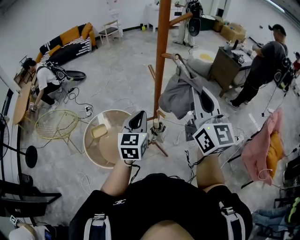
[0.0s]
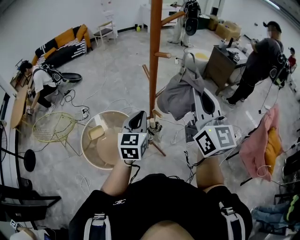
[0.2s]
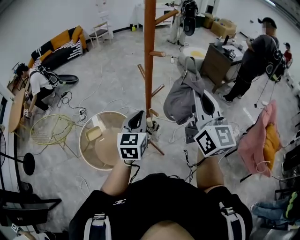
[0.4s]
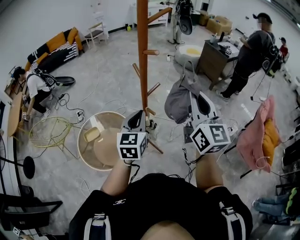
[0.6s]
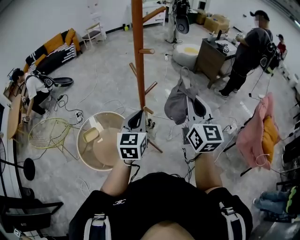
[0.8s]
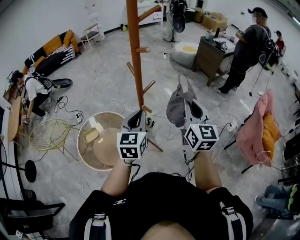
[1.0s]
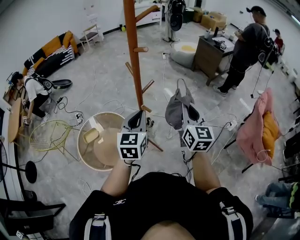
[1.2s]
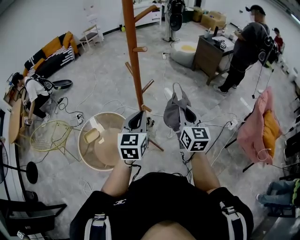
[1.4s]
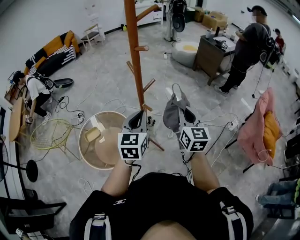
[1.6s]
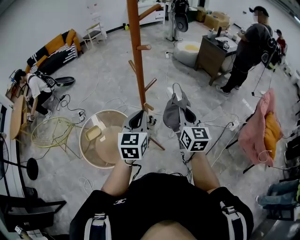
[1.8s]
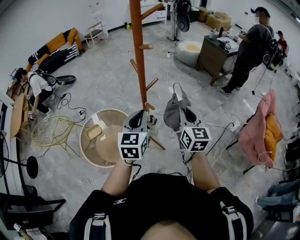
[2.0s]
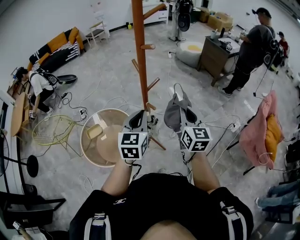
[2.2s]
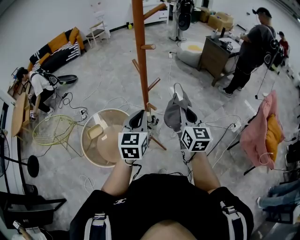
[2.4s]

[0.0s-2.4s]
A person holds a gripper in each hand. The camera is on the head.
0.0s to 1.2s: The right gripper travels downward and to the right by some 15 cm, and rotates about 20 degrees; the left gripper goes some 5 cm to the right.
1.2s to 2.4s: The grippers stay close to where they were, moving slightly.

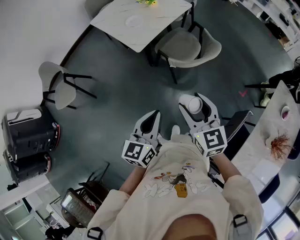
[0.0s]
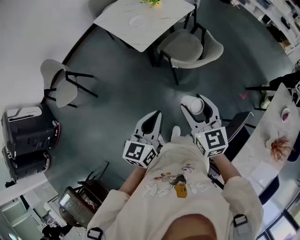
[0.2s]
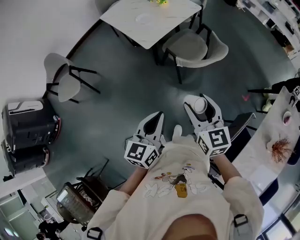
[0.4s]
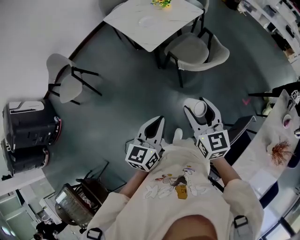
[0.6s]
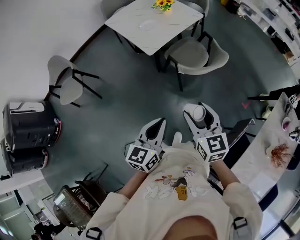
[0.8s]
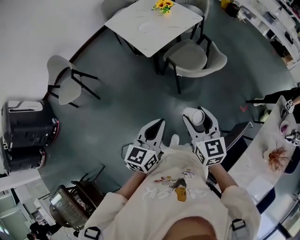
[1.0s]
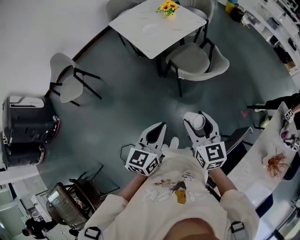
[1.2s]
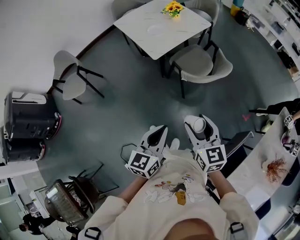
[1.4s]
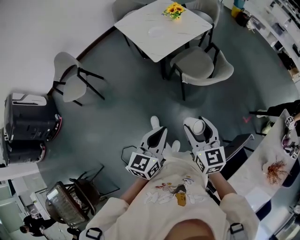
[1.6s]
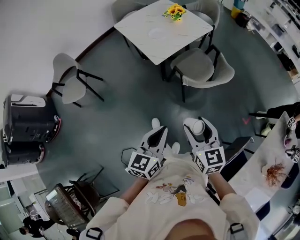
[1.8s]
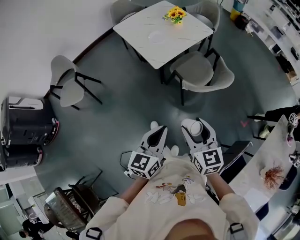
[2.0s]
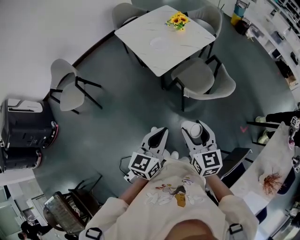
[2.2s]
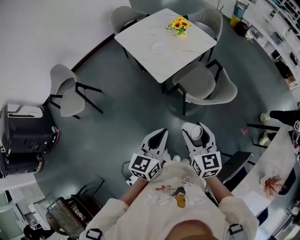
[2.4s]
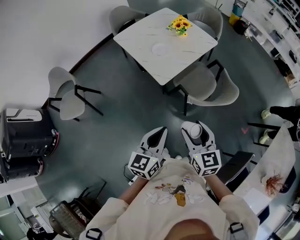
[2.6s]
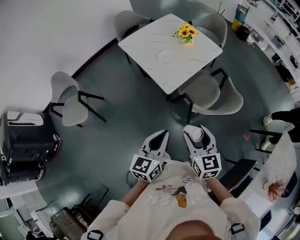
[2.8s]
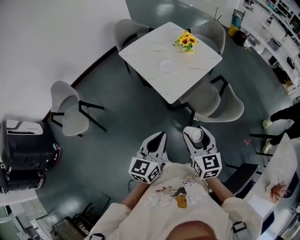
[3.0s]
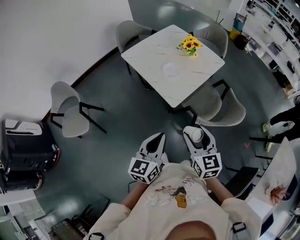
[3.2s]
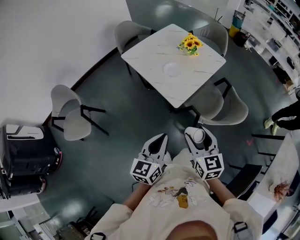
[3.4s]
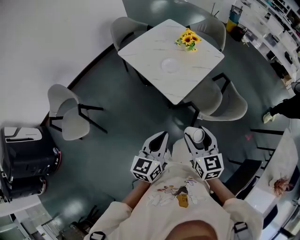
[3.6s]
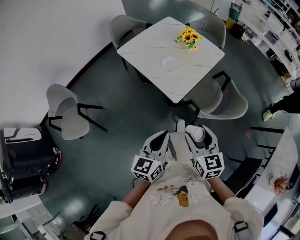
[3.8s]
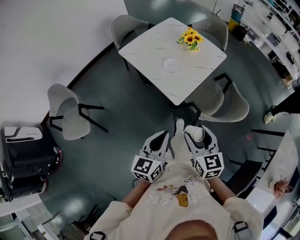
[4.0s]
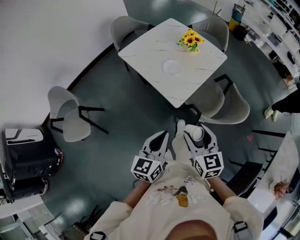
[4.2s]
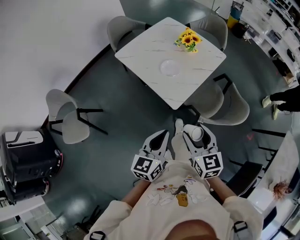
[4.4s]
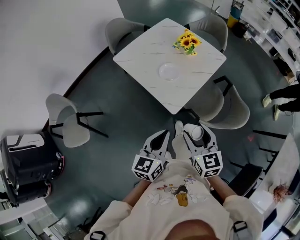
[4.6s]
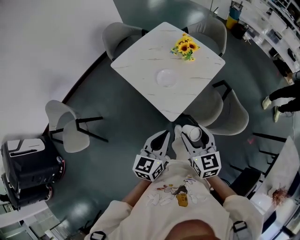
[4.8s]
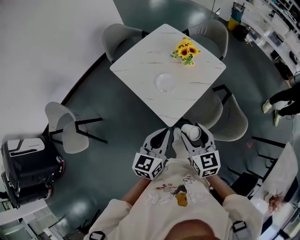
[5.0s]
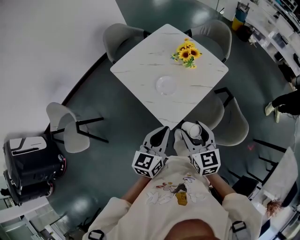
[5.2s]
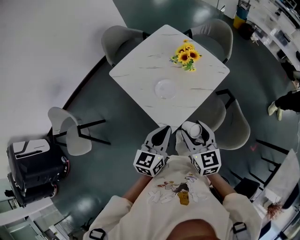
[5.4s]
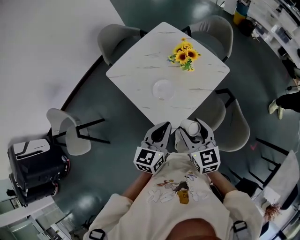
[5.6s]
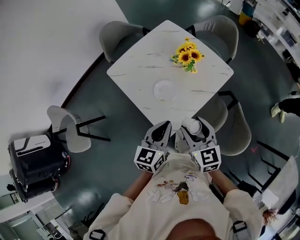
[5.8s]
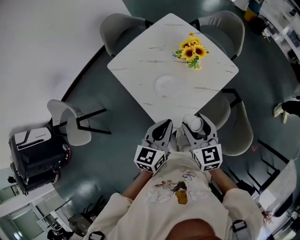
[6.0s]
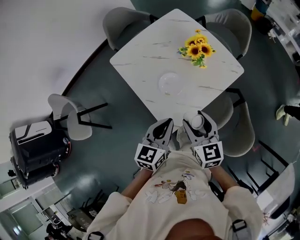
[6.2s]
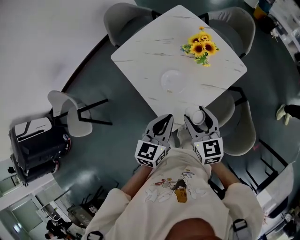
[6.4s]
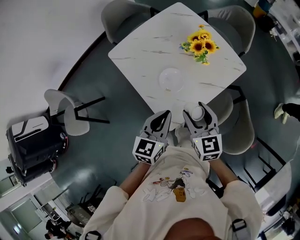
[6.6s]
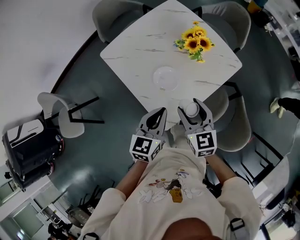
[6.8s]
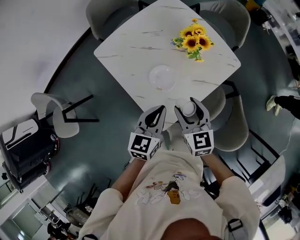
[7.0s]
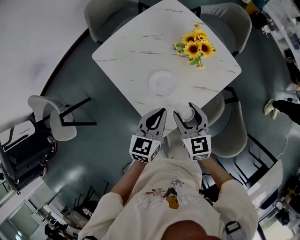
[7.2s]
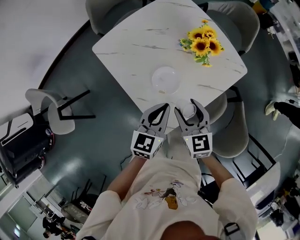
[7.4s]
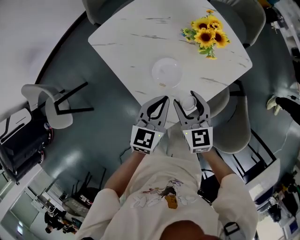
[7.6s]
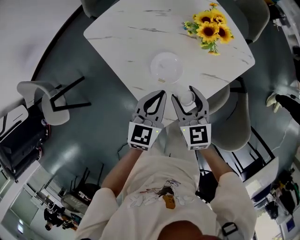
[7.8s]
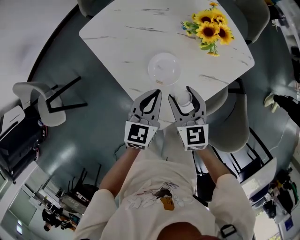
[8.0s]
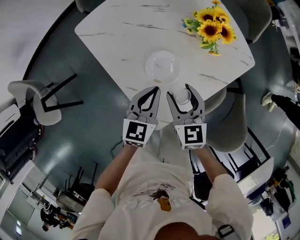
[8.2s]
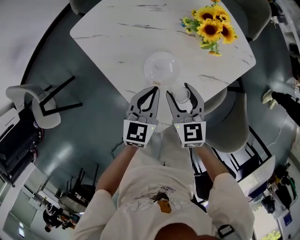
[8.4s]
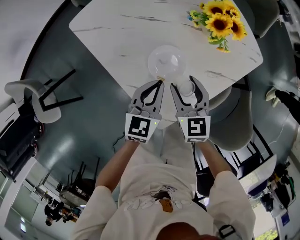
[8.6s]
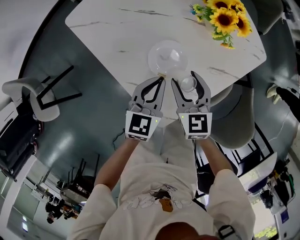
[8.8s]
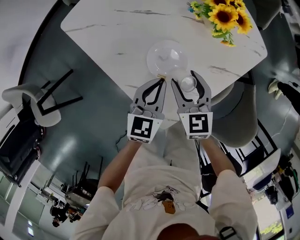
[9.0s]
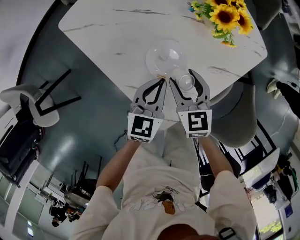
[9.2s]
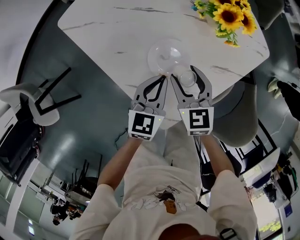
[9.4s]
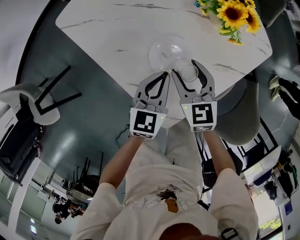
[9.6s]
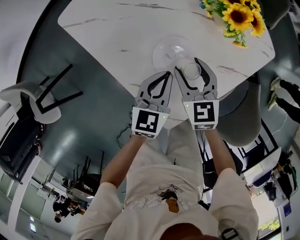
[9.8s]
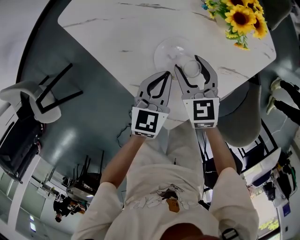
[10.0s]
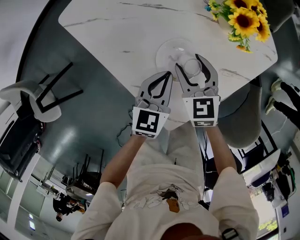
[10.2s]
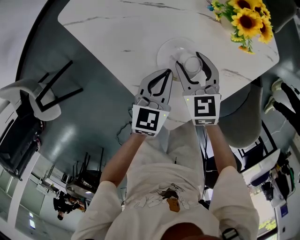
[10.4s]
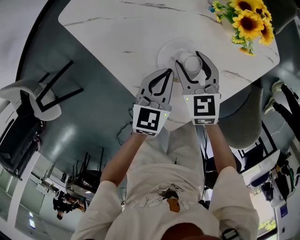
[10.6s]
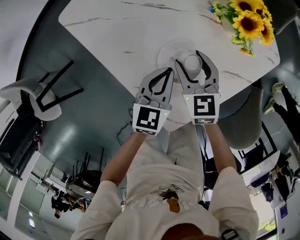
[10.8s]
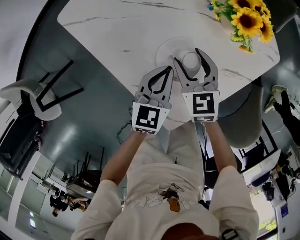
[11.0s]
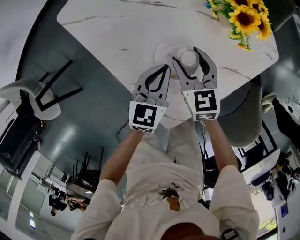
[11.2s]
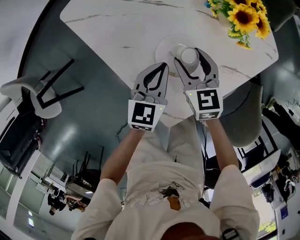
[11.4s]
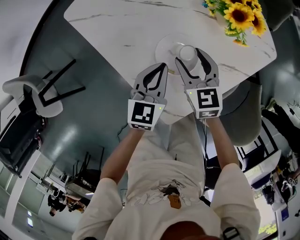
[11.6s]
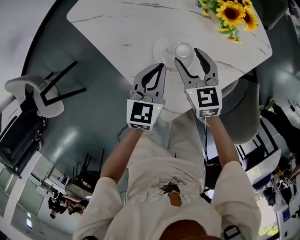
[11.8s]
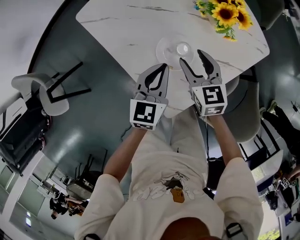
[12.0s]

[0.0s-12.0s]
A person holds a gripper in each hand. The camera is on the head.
0.0s to 1.6s: The right gripper shifts by some 5 cm.
1.6s to 3.0s: The grippers both shift forward and to the left by roughly 30 cm.
3.0s to 4.4s: Both grippers travel together forward, roughly 10 cm.
4.4s to 6.0s: Both grippers travel together forward, approximately 30 cm.
6.0s to 7.6s: The right gripper shifts approximately 20 cm downward, forward and to the left. Meanwhile the left gripper goes approximately 15 cm downward and forward.
7.6s to 9.0s: Both grippers travel together downward, some 10 cm.
9.0s to 10.4s: The right gripper goes roughly 5 cm forward. Meanwhile the left gripper ends up about 5 cm from where it was.
10.4s to 12.0s: The two grippers go roughly 5 cm upward.

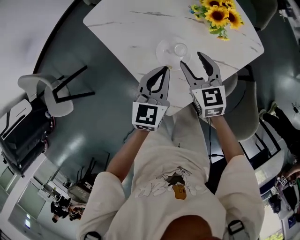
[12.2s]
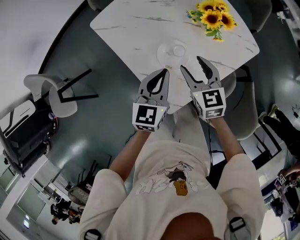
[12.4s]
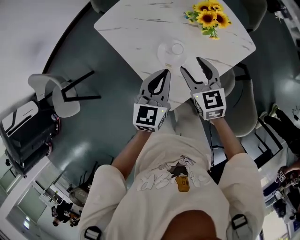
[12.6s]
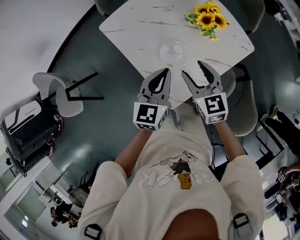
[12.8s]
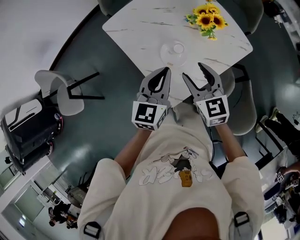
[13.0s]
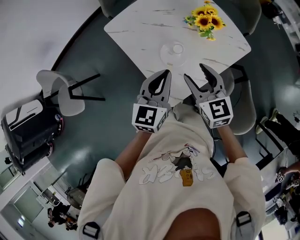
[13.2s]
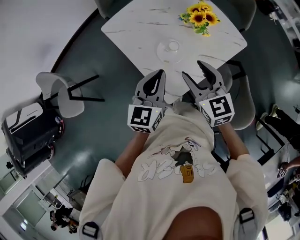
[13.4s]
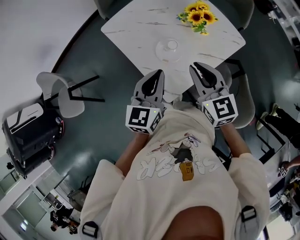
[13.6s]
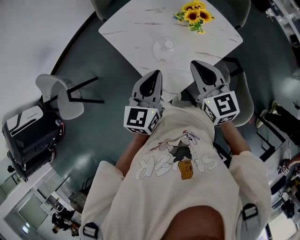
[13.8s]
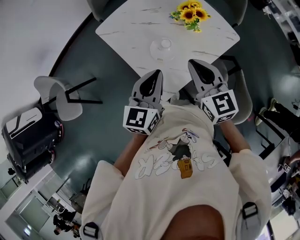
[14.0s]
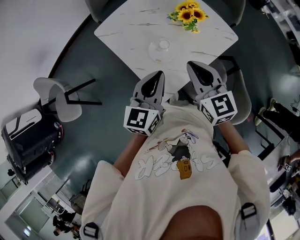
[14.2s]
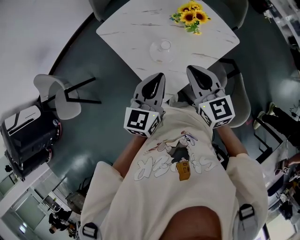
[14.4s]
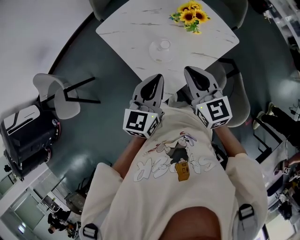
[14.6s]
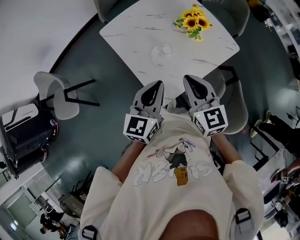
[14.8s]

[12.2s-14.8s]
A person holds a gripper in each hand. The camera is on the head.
12.2s to 13.4s: The two grippers go roughly 20 cm upward and backward.
13.4s to 14.8s: The left gripper travels backward by approximately 5 cm; the right gripper shifts by roughly 5 cm, and closes its fingers.

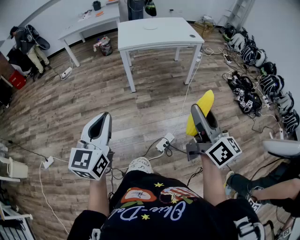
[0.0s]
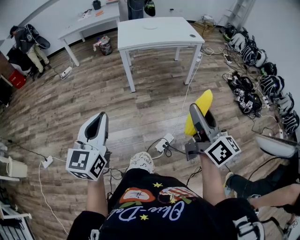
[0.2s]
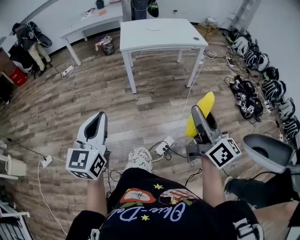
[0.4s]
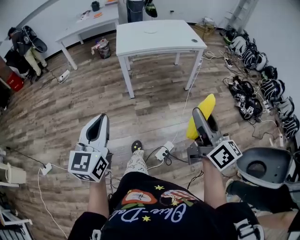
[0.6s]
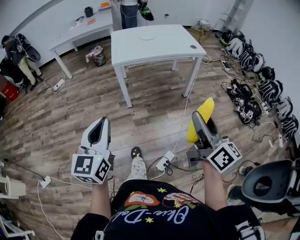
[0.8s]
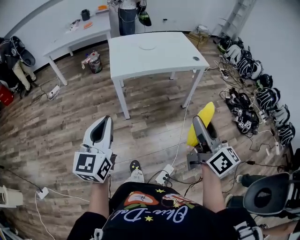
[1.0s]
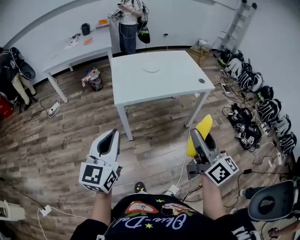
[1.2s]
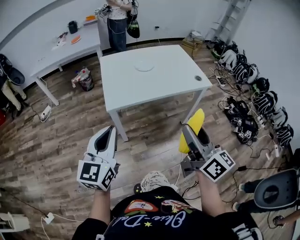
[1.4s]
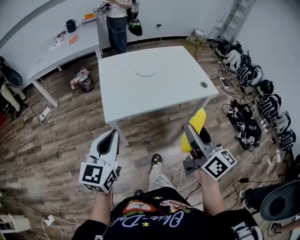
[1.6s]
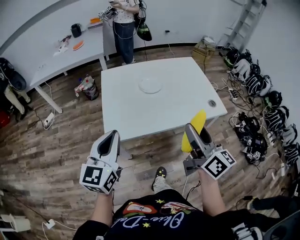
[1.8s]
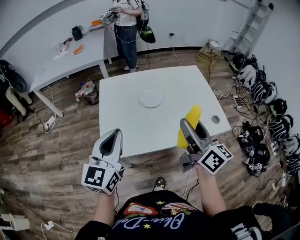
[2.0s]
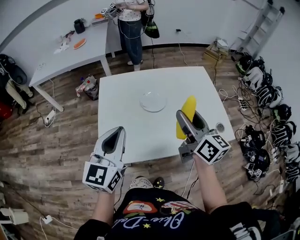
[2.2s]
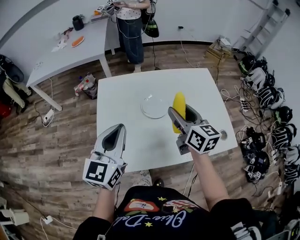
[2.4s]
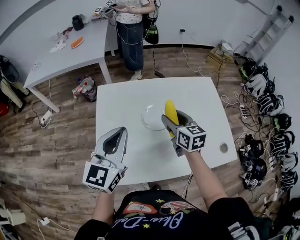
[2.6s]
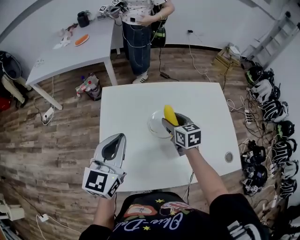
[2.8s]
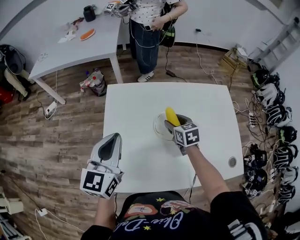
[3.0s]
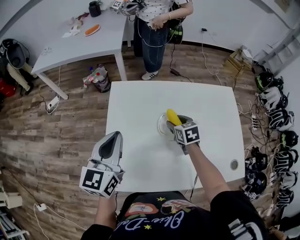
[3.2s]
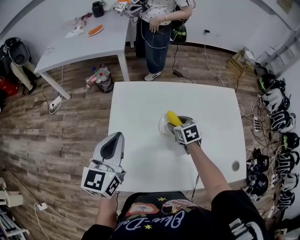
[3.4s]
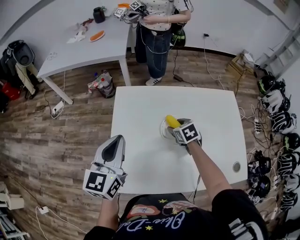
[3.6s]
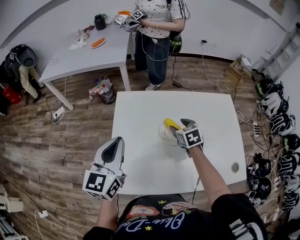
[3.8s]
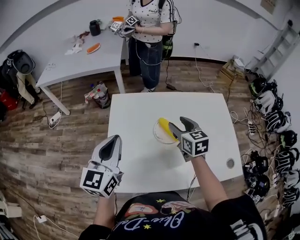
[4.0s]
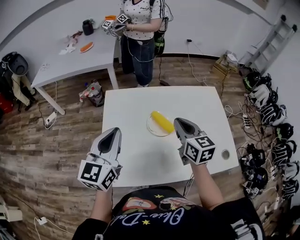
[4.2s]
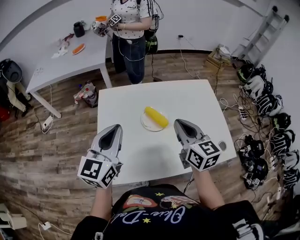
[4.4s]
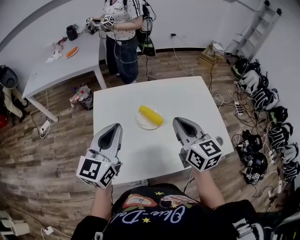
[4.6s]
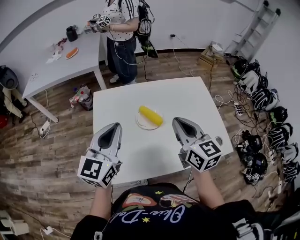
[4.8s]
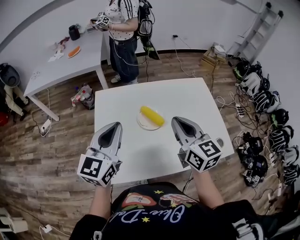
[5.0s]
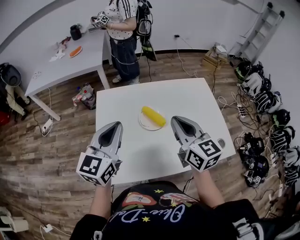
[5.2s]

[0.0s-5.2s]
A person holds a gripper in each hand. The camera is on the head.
0.0s to 1.8s: Both grippers are carried forward, some 70 cm.
1.8s to 3.4s: The left gripper moves forward, approximately 35 cm; the right gripper is displaced forward and downward by roughly 60 cm, and tilts its fingers about 60 degrees downward.
3.4s to 5.2s: The right gripper travels upward and backward by about 30 cm, points its fingers about 40 degrees further upward, and closes its fingers. Meanwhile the left gripper goes about 10 cm to the right, backward and upward.

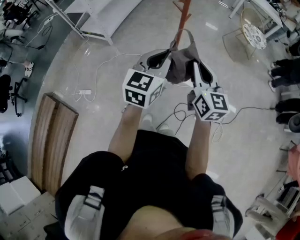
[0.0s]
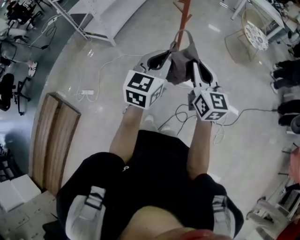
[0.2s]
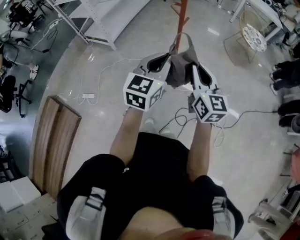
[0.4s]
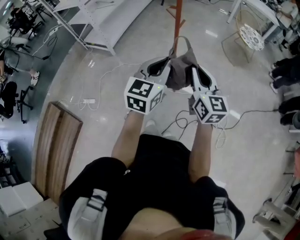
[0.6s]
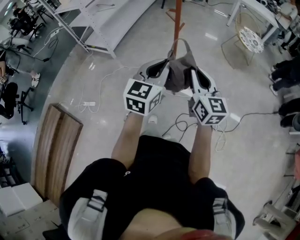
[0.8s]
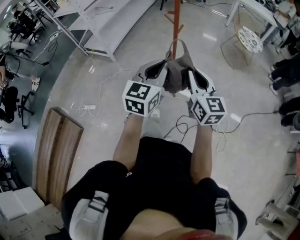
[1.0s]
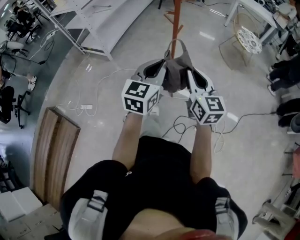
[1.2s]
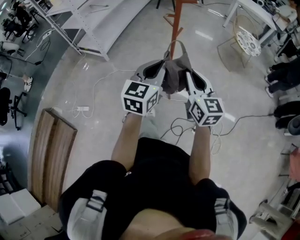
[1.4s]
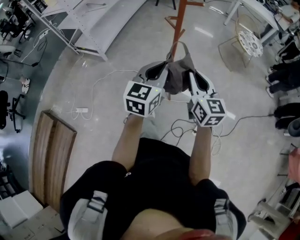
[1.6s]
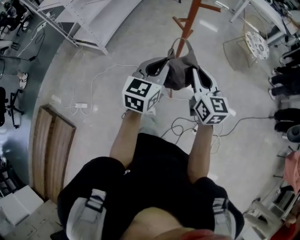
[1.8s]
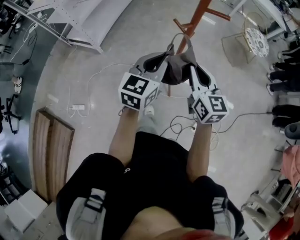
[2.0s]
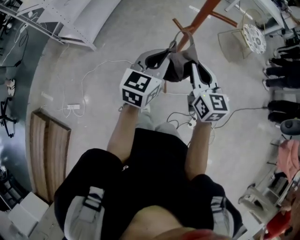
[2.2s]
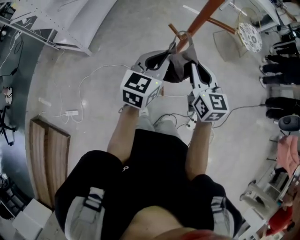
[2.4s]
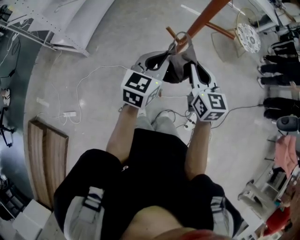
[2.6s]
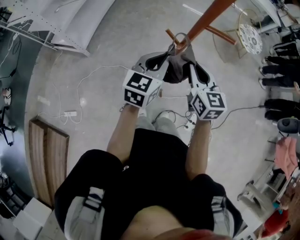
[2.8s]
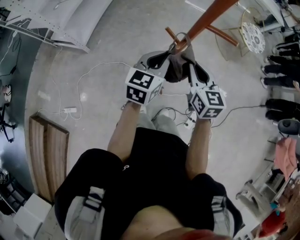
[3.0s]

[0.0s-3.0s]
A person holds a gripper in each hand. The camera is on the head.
0.0s to 1.6s: The two grippers go some 10 cm forward.
1.6s to 3.0s: The two grippers go about 25 cm forward.
